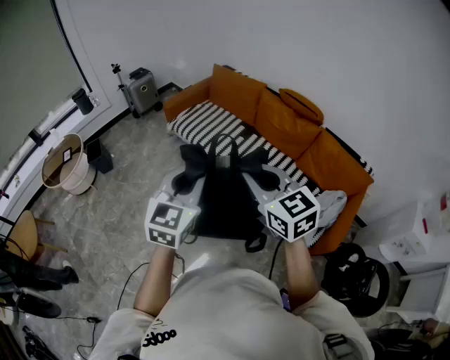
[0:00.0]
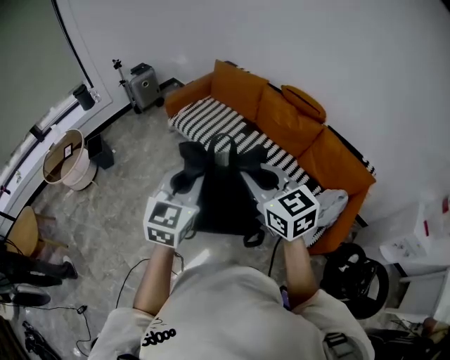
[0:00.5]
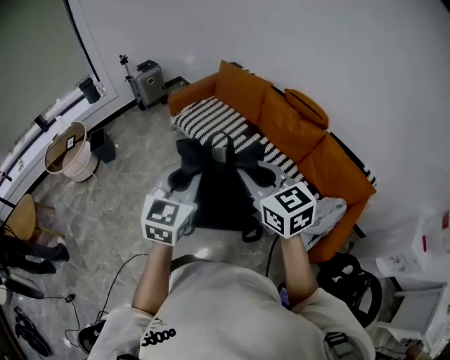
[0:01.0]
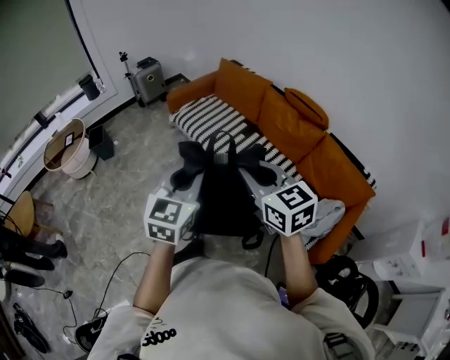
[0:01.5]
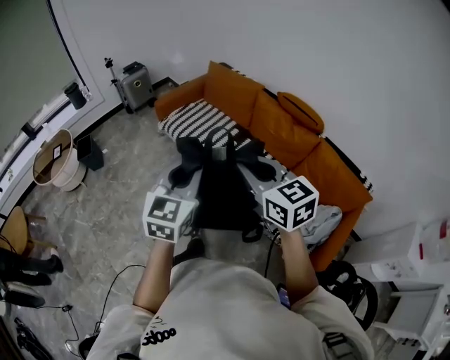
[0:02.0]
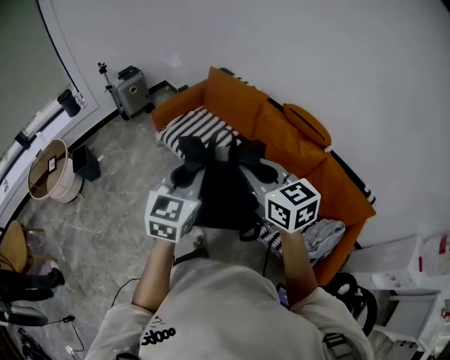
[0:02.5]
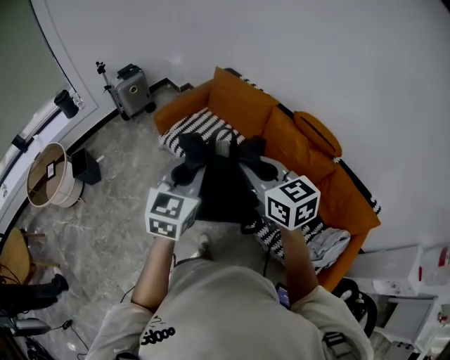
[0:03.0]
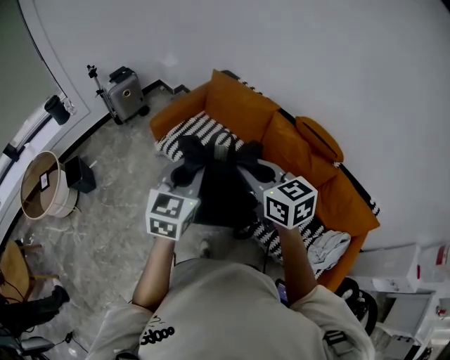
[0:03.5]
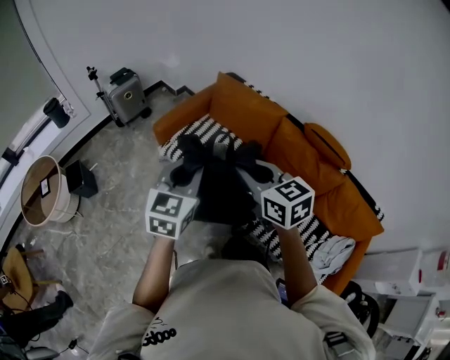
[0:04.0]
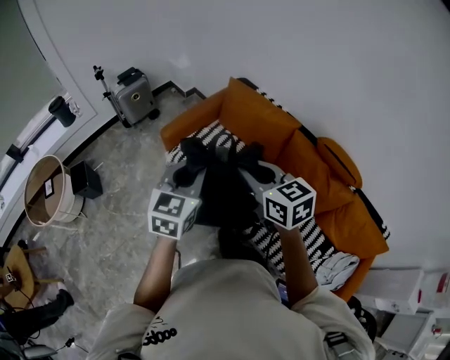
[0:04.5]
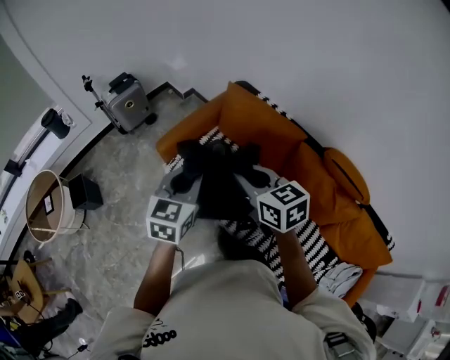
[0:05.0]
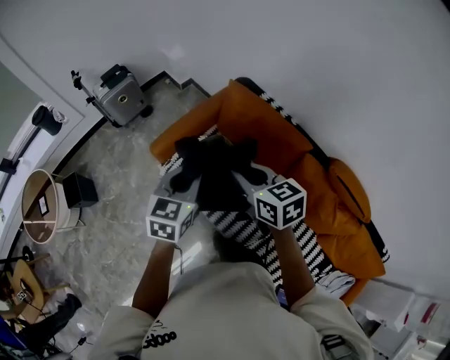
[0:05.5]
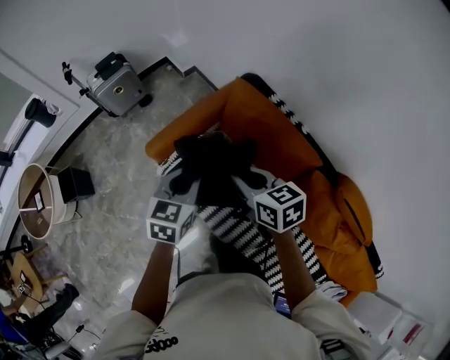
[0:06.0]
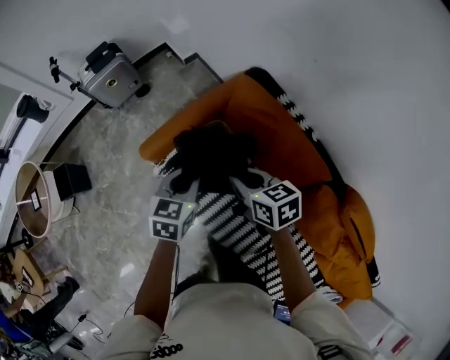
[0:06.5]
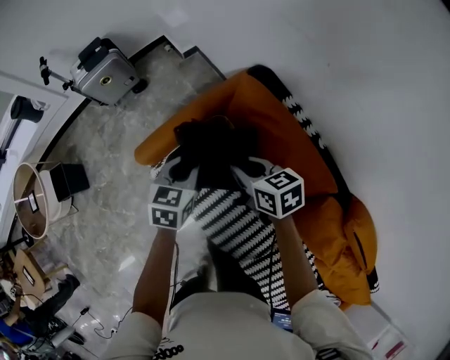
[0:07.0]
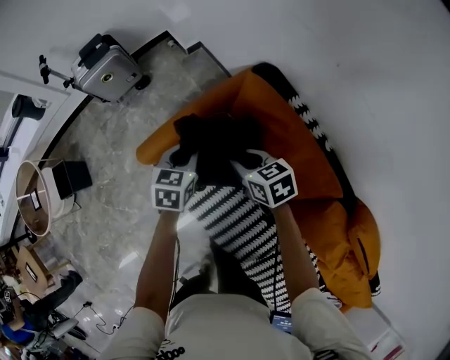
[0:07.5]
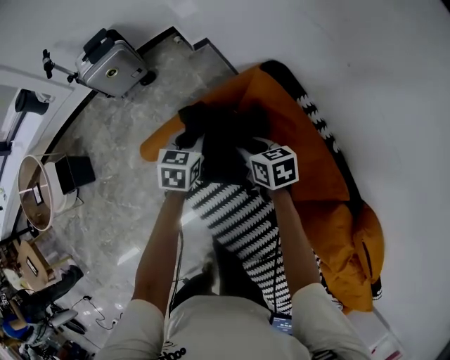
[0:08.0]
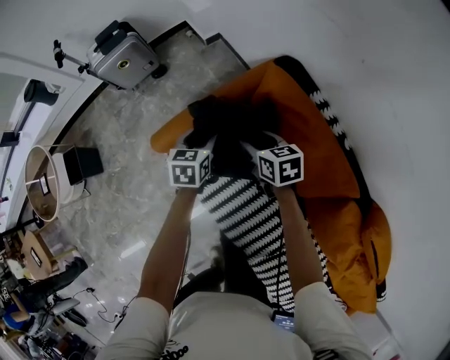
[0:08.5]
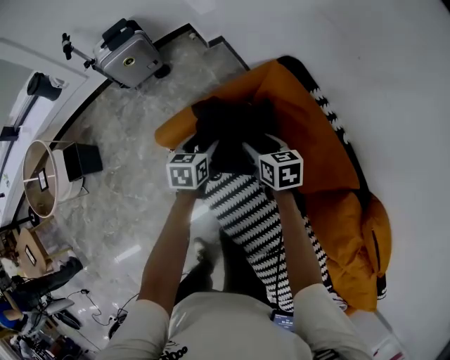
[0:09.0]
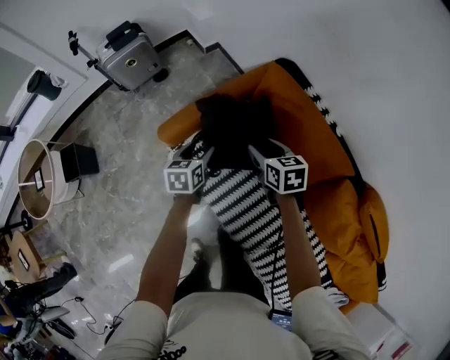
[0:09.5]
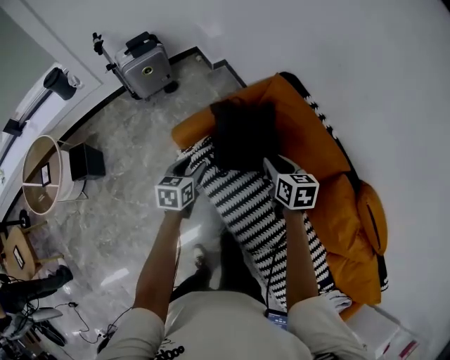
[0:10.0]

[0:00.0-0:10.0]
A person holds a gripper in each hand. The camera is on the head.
0:00.0 to 0:02.0: The grippers both shift forward and to the right by about 15 cm.
0:02.0 to 0:04.0: Both grippers travel together forward, approximately 35 cm.
0:04.0 to 0:06.0: The two grippers travel together, forward, roughly 40 cm. The right gripper rotates some 20 degrees. The left gripper changes its angle by approximately 20 degrees.
0:06.0 to 0:08.0: The left gripper shifts roughly 30 cm forward and downward, while the right gripper is displaced downward and forward by roughly 30 cm.
0:08.0 to 0:10.0: The right gripper heads backward and upward, covering roughly 20 cm, and opens, then closes again, while the left gripper shifts roughly 30 cm backward and to the left, and opens up.

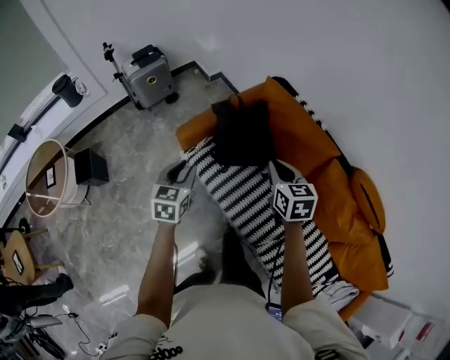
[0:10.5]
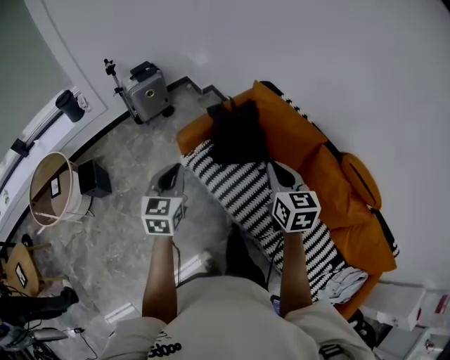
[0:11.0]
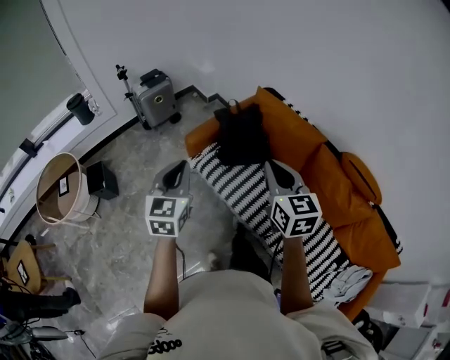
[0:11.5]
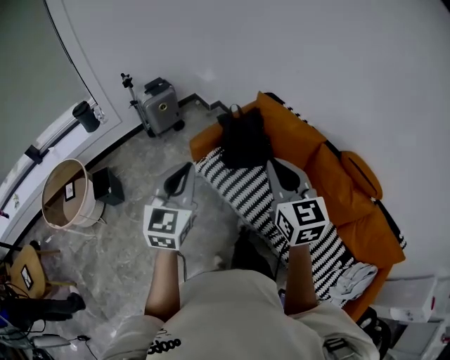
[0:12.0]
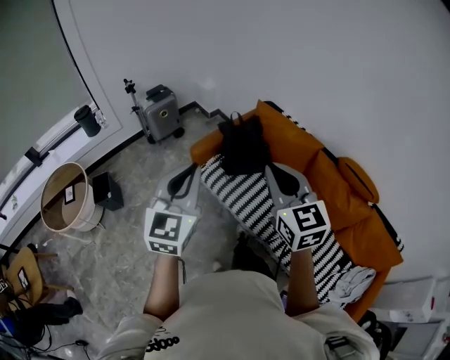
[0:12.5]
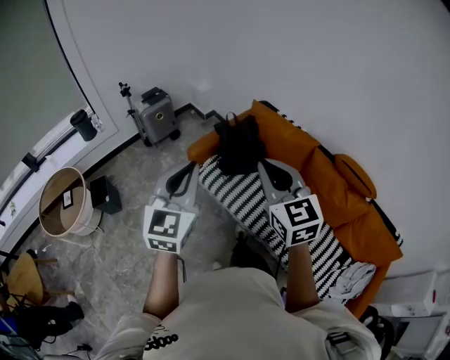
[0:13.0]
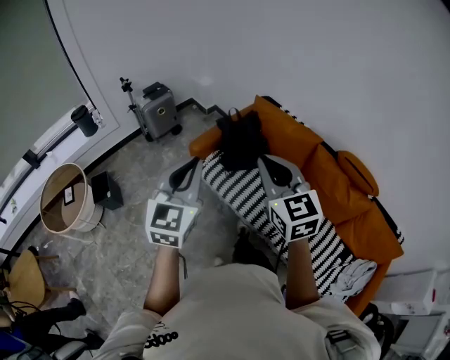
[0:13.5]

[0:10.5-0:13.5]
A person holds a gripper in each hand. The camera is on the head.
0:10.5 to 0:12.0: The left gripper heads upward and backward, covering about 35 cm, turns by roughly 30 degrees, and closes its fingers. Meanwhile the right gripper is displaced backward and upward by approximately 35 cm, and rotates about 30 degrees.
0:12.0 to 0:13.5: The grippers move only a little.

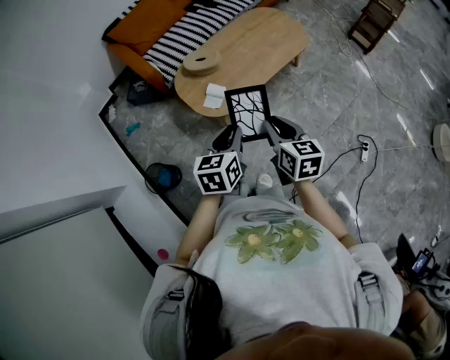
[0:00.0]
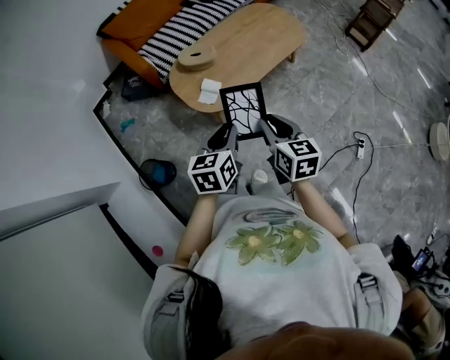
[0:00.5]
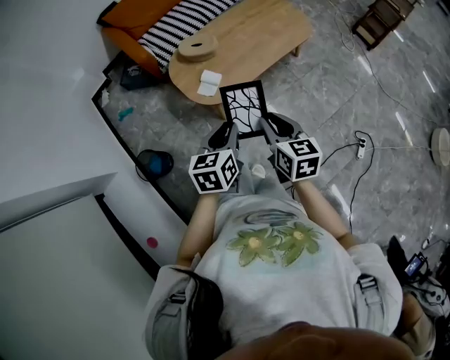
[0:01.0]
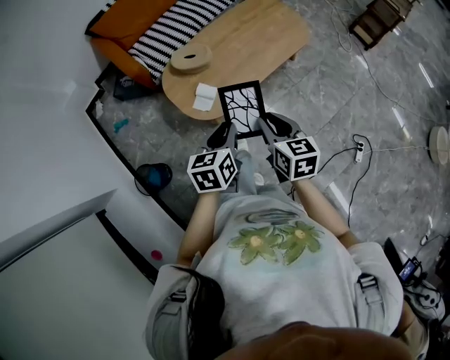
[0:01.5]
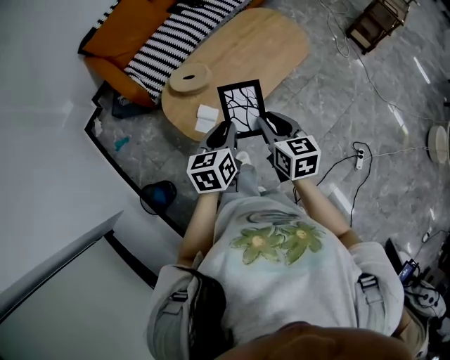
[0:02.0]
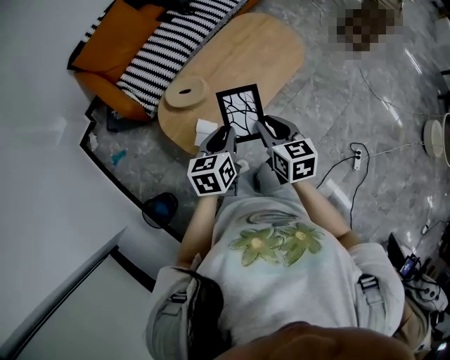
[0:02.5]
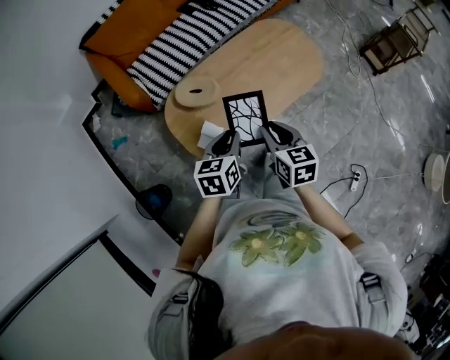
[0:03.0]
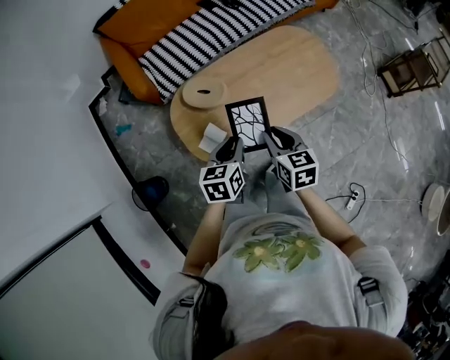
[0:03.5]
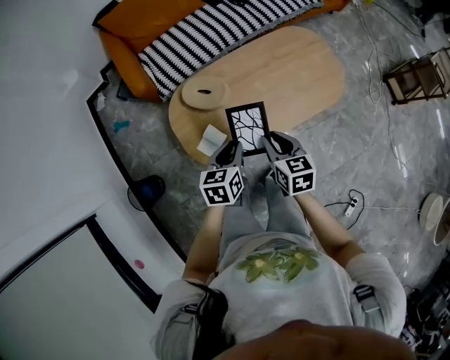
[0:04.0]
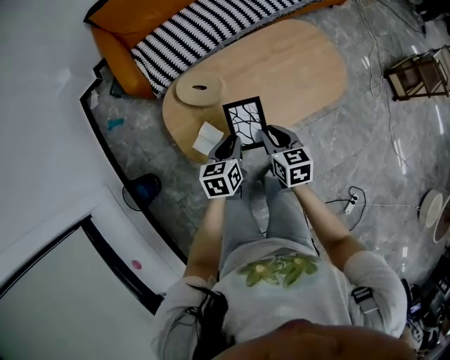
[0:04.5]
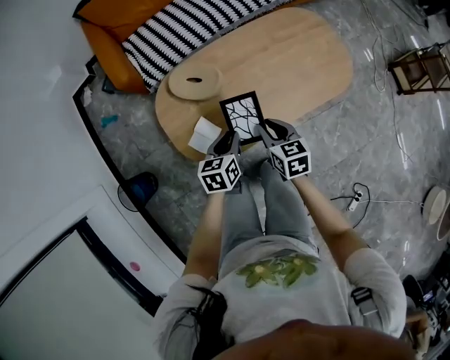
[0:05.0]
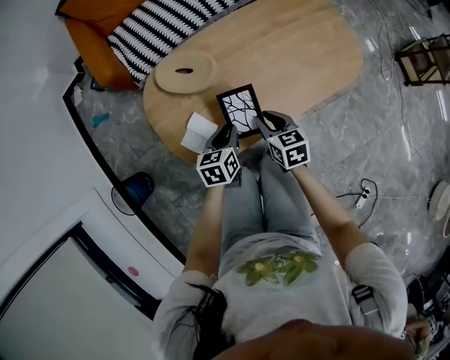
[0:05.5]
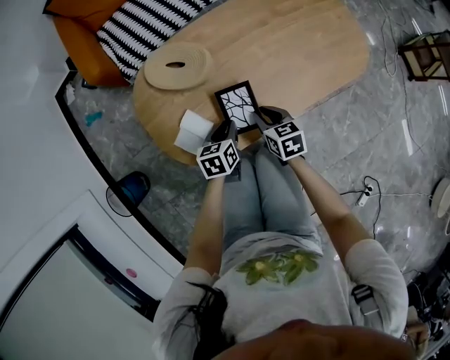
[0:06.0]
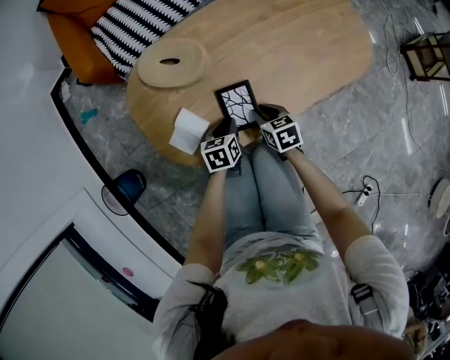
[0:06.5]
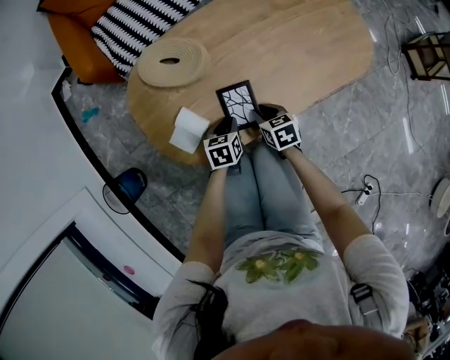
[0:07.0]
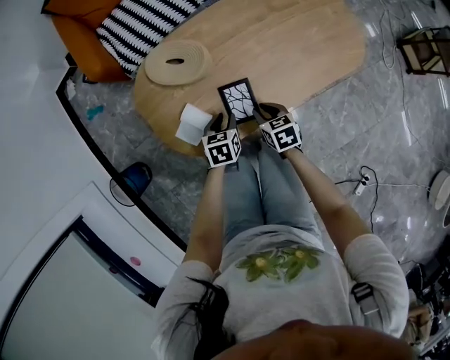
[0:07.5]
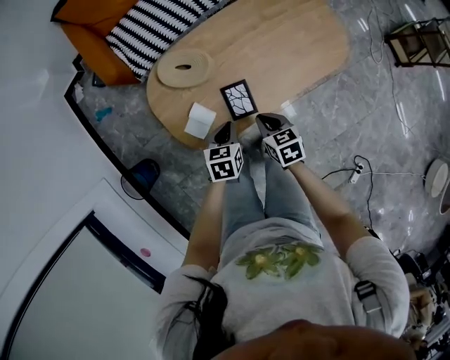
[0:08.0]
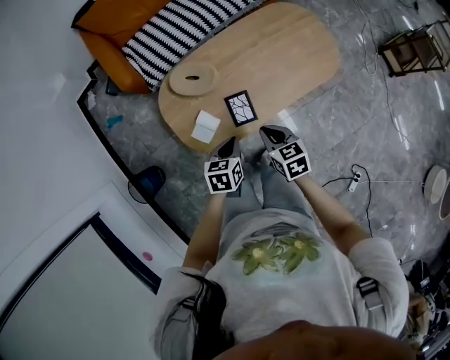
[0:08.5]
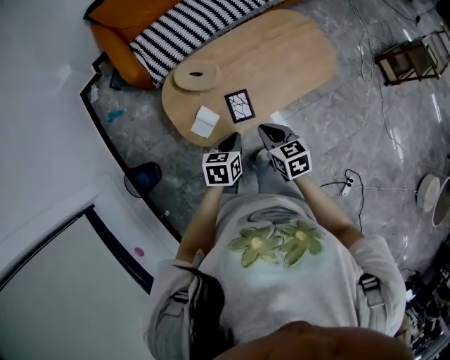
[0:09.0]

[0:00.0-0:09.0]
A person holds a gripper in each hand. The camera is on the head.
0:00.0 to 0:02.0: The two grippers go some 20 cm forward.
0:02.0 to 0:04.5: Both grippers travel together downward and forward, some 20 cm. The right gripper changes its angle by some 20 degrees.
0:04.5 to 0:07.0: The grippers both shift downward by roughly 30 cm.
0:07.0 to 0:09.0: Both grippers move upward, about 35 cm. The right gripper closes up.

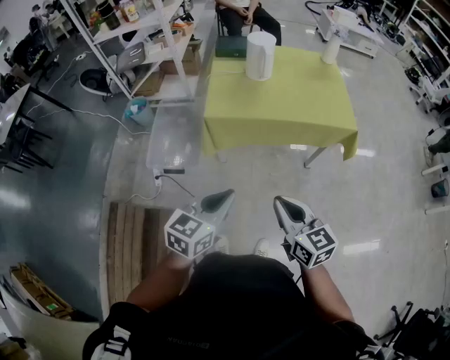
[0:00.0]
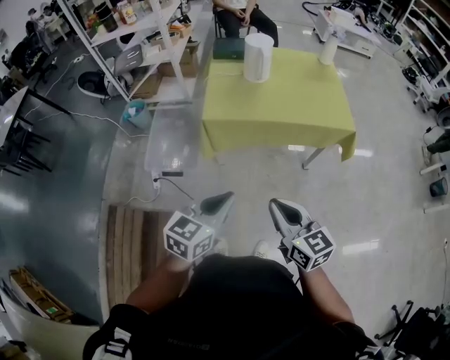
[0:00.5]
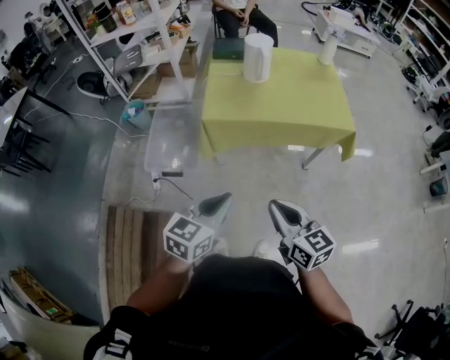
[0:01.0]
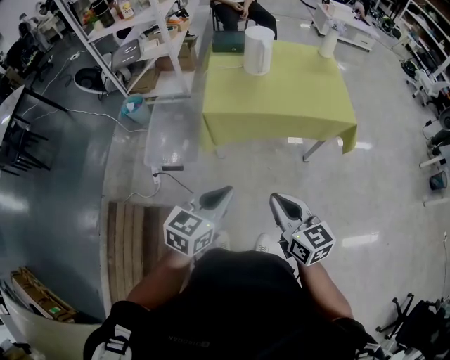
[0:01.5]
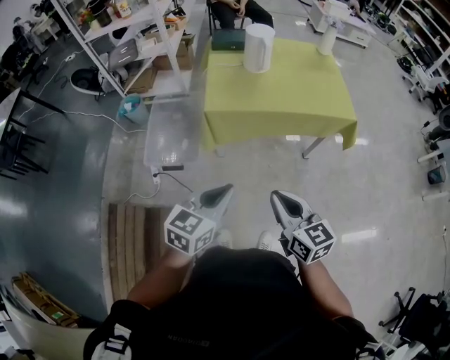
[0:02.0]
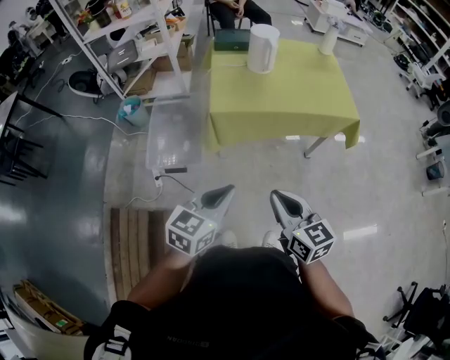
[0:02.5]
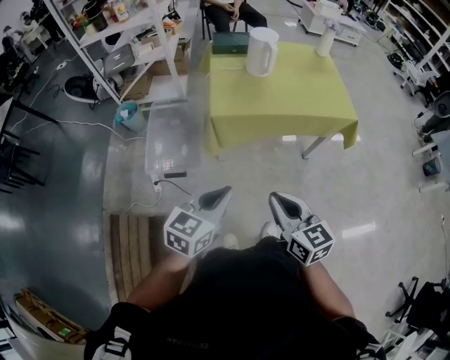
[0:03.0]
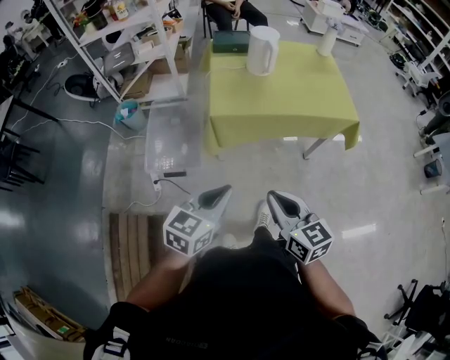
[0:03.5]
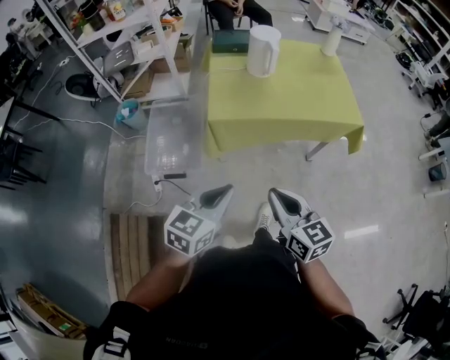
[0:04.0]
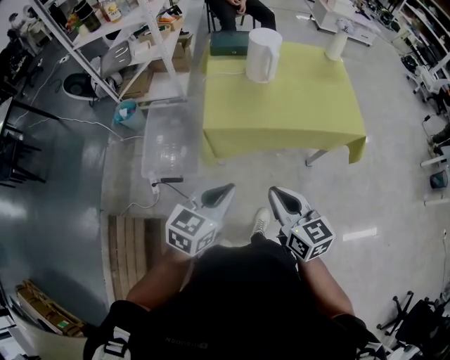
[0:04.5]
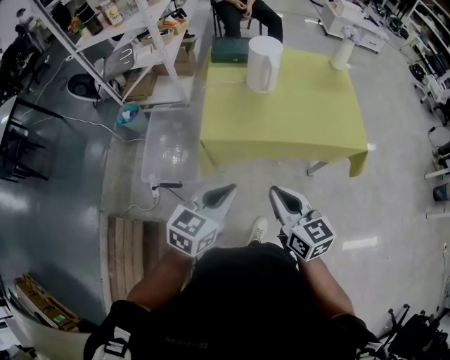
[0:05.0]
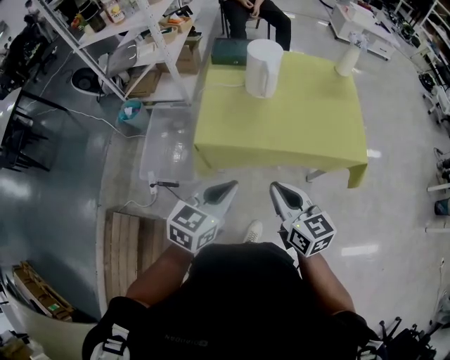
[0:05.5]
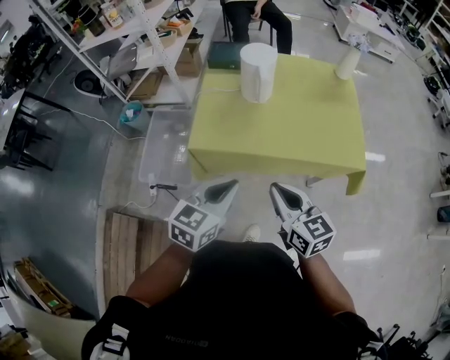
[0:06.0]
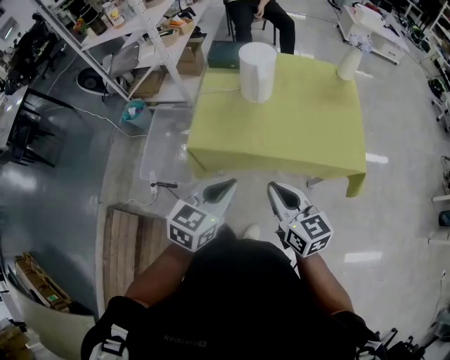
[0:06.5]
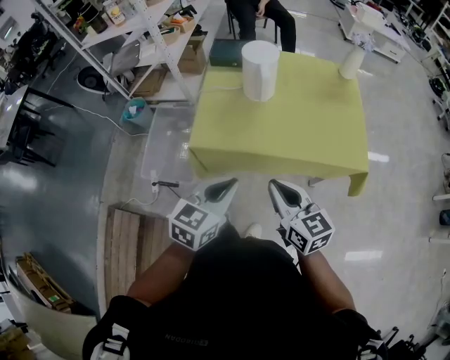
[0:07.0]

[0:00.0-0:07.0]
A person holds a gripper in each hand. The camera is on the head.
0:00.0 to 0:02.0: The grippers stay close to where they were, moving slightly.
0:02.0 to 0:03.5: Both grippers travel together to the left, about 5 cm.
0:03.5 to 0:05.0: The two grippers go some 20 cm forward and to the right.
0:05.0 to 0:07.0: The right gripper travels forward and to the right by some 10 cm; the left gripper travels to the right and forward by approximately 10 cm.
